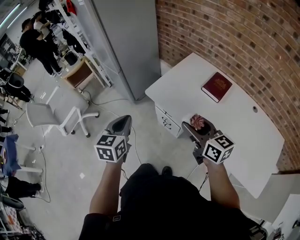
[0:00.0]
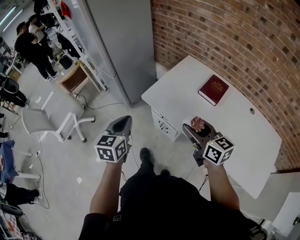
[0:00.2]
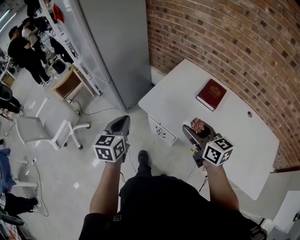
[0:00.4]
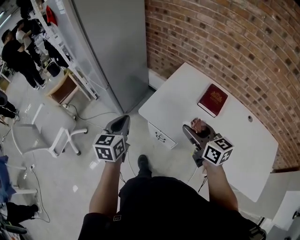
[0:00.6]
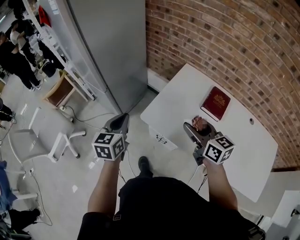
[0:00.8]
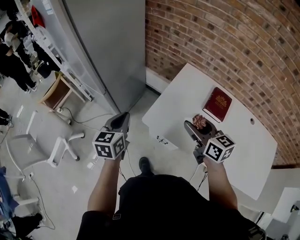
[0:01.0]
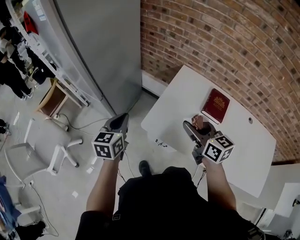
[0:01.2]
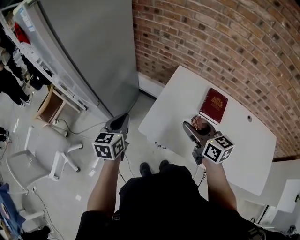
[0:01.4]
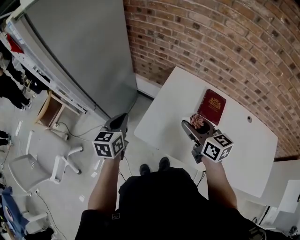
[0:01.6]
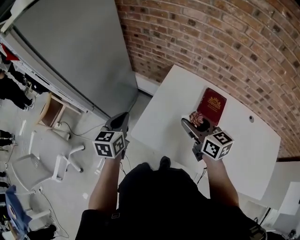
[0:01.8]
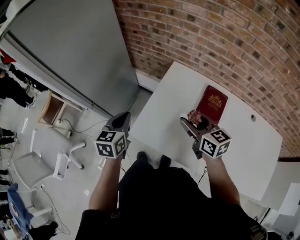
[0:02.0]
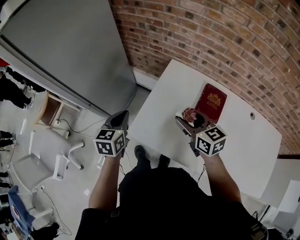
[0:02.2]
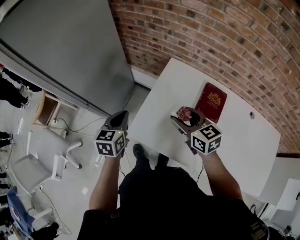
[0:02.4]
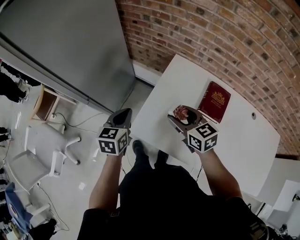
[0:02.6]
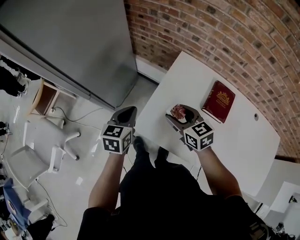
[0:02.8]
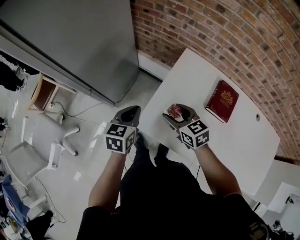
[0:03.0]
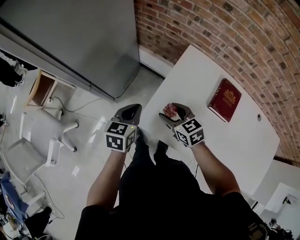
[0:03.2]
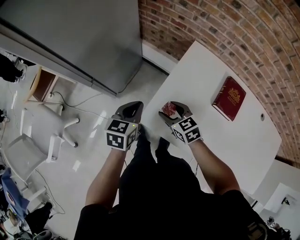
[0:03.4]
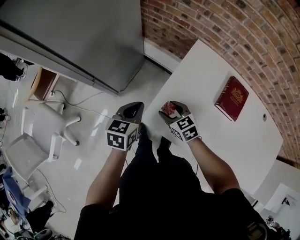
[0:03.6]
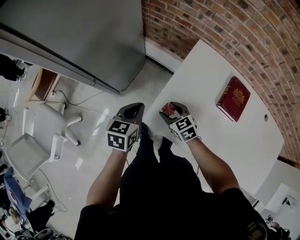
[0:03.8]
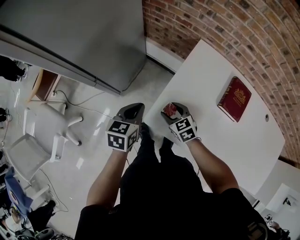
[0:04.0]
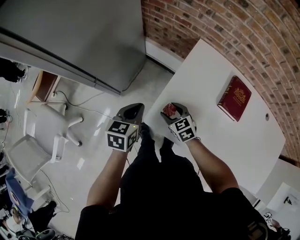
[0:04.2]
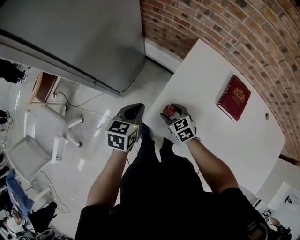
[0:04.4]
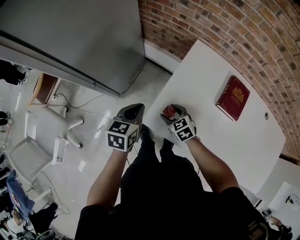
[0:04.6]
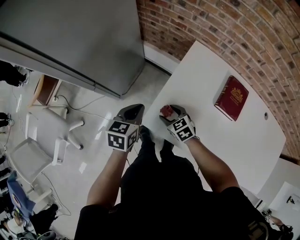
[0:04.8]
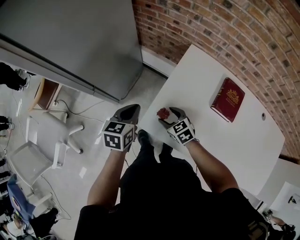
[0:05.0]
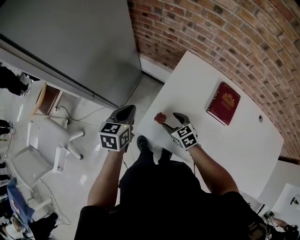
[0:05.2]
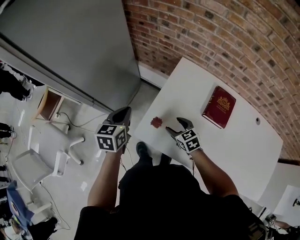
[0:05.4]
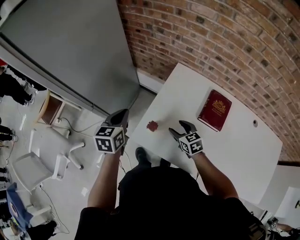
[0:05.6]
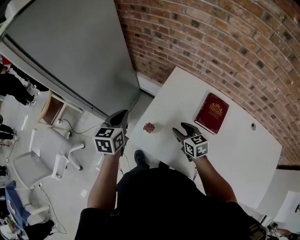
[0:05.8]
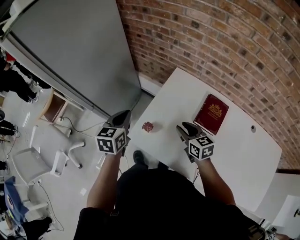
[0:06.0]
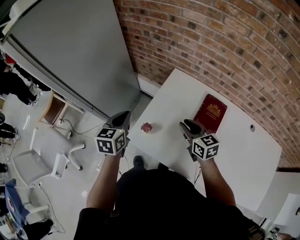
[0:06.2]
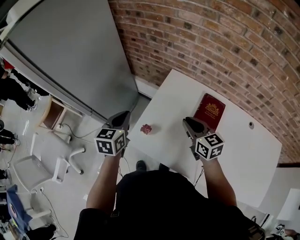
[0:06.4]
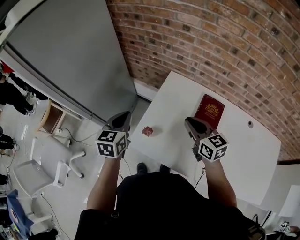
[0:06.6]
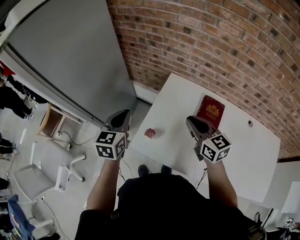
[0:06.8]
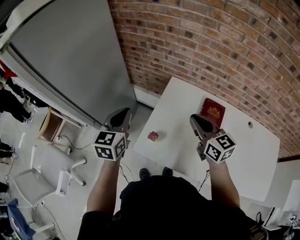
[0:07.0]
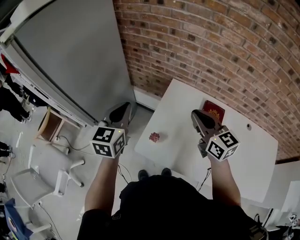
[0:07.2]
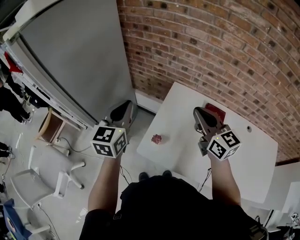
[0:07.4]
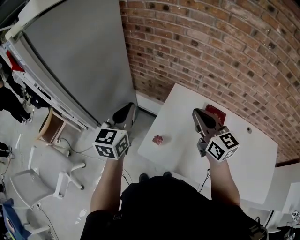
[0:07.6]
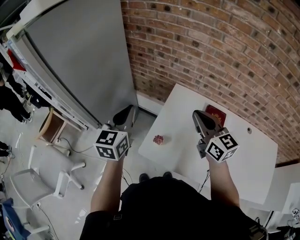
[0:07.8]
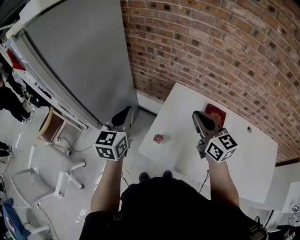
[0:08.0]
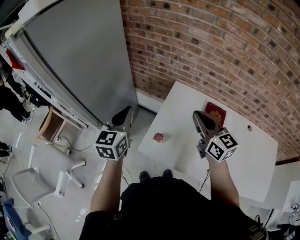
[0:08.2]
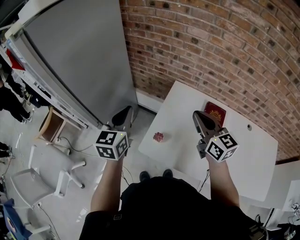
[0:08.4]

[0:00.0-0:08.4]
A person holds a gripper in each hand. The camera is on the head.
0:00.0 to 0:01.4: Both grippers move forward, approximately 30 cm.
0:01.4 to 0:02.8: The left gripper heads to the right, downward and forward, covering approximately 10 cm. The right gripper moves downward and forward, some 15 cm, and rotates approximately 20 degrees.
0:02.8 to 0:04.2: The right gripper is displaced downward and to the left by some 20 cm; the left gripper travels downward by approximately 5 cm.
0:04.2 to 0:05.6: The left gripper heads upward, covering roughly 10 cm. The right gripper travels to the right and upward by roughly 15 cm.
0:05.6 to 0:07.0: The left gripper heads upward, covering approximately 10 cm, while the right gripper moves upward, approximately 25 cm, swivels roughly 30 degrees, and closes.
0:07.0 to 0:08.4: The right gripper shifts by roughly 5 cm.

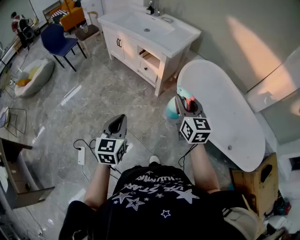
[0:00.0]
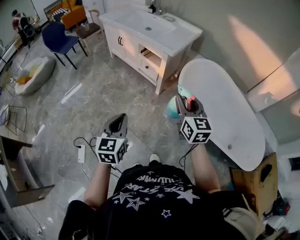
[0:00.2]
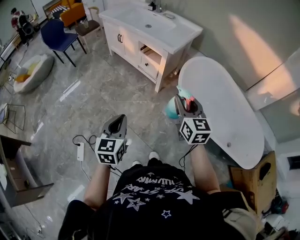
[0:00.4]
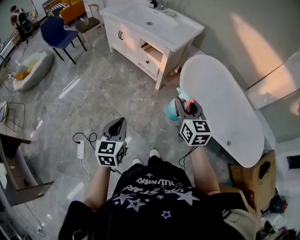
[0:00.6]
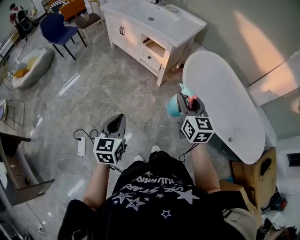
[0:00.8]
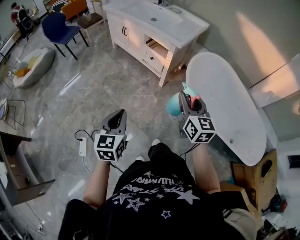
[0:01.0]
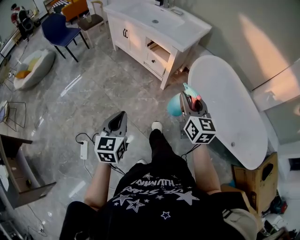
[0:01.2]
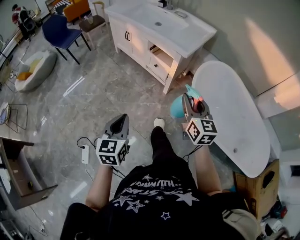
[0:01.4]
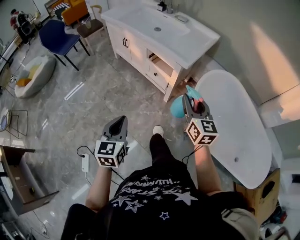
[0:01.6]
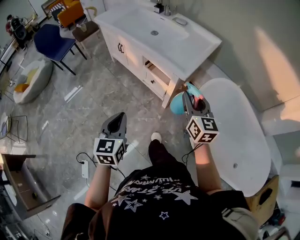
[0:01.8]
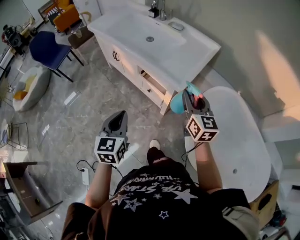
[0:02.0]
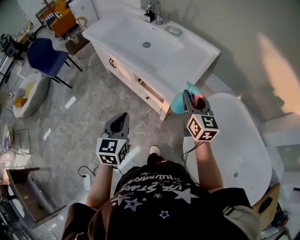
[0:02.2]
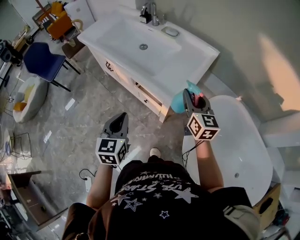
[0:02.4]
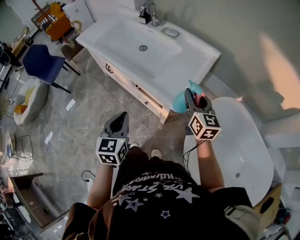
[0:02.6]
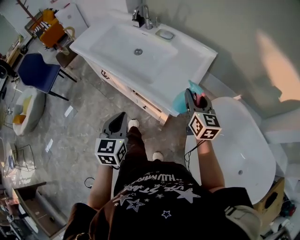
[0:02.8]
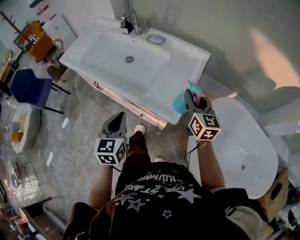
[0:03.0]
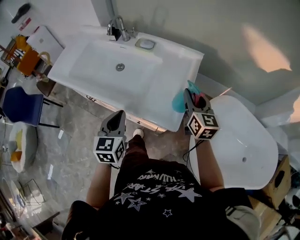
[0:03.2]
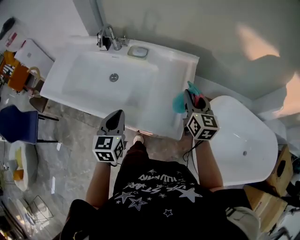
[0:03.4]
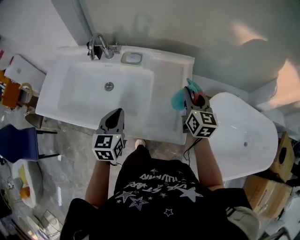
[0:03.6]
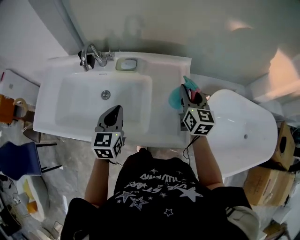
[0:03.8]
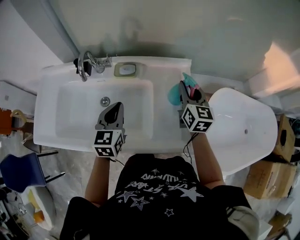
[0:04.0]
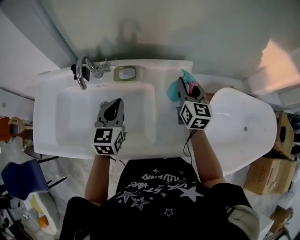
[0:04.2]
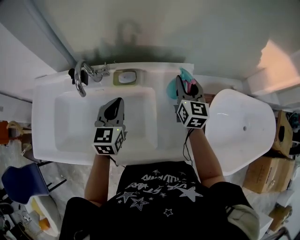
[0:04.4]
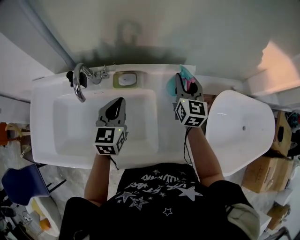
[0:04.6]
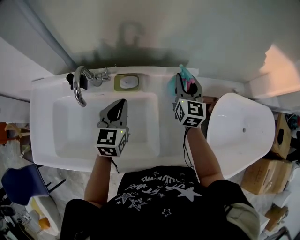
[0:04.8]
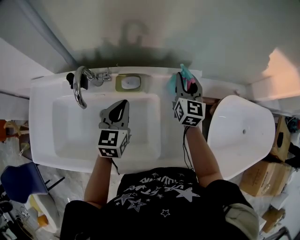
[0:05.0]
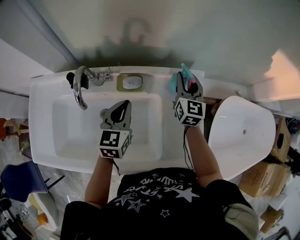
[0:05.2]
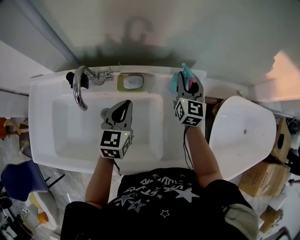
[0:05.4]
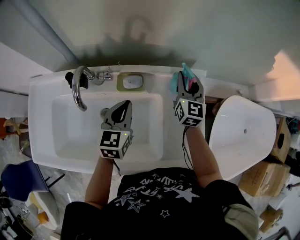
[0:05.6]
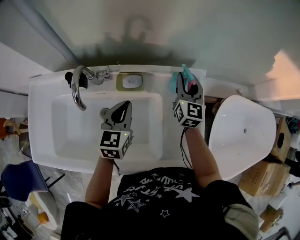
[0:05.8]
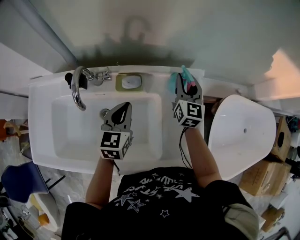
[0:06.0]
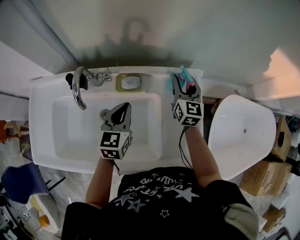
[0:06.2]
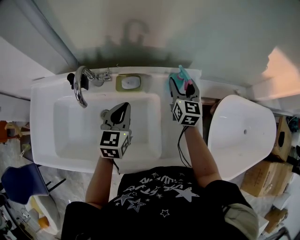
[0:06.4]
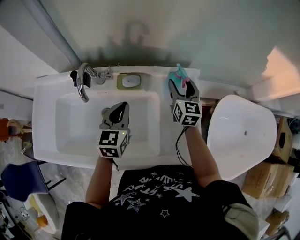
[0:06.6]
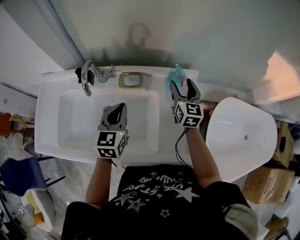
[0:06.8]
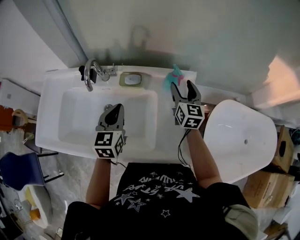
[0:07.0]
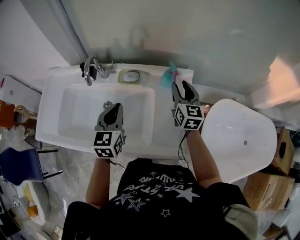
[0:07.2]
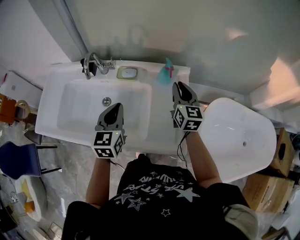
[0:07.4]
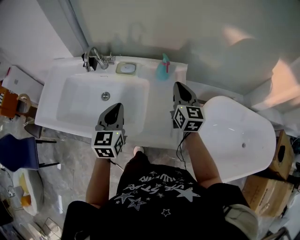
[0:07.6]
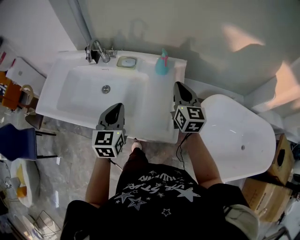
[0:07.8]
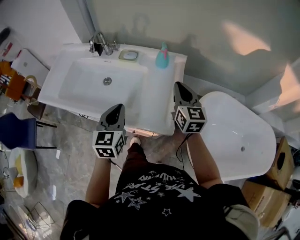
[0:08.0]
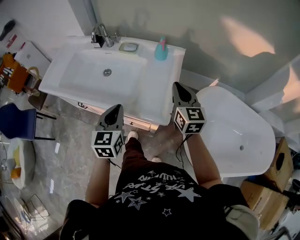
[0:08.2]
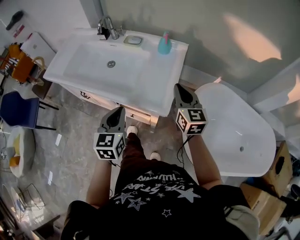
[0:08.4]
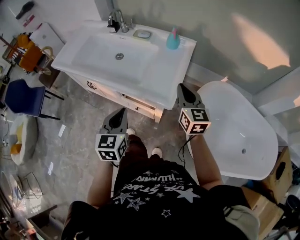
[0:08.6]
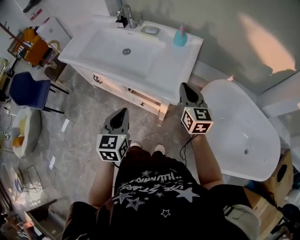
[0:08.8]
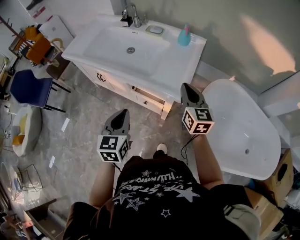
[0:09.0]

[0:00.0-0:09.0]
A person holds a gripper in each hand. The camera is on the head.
0:00.0 to 0:01.6: Both grippers travel together forward, roughly 20 cm.
0:01.6 to 0:03.0: Both grippers are carried forward, about 40 cm.
0:03.0 to 0:04.4: The left gripper ends up some 40 cm from where it was, and changes its angle by roughly 30 degrees; the right gripper ends up roughly 30 cm from where it was, and turns by approximately 30 degrees.
0:04.4 to 0:06.0: The left gripper moves approximately 5 cm; the right gripper travels forward and downward by about 10 cm.
0:06.0 to 0:07.6: Both grippers move backward and upward, about 20 cm. The right gripper closes its fingers.
0:07.6 to 0:09.0: The grippers both shift backward by roughly 30 cm.

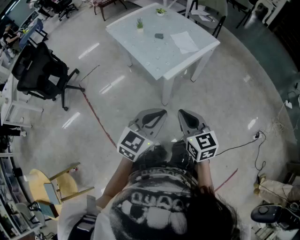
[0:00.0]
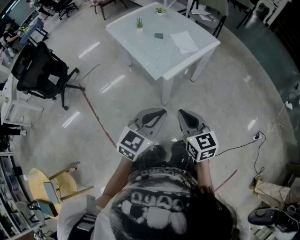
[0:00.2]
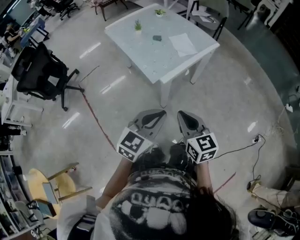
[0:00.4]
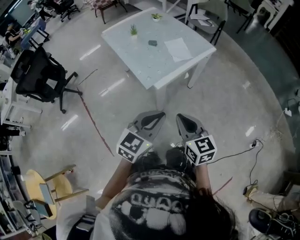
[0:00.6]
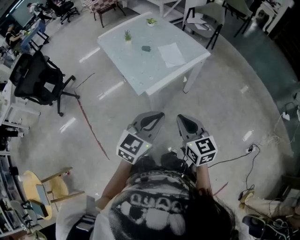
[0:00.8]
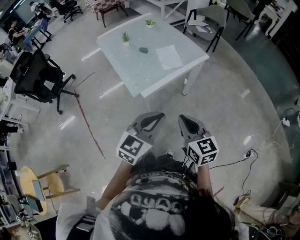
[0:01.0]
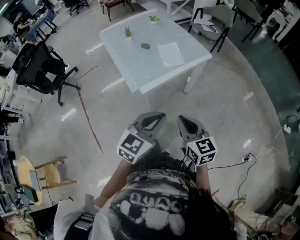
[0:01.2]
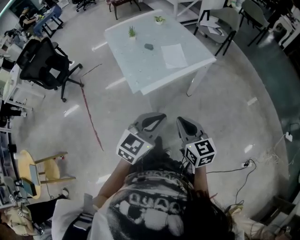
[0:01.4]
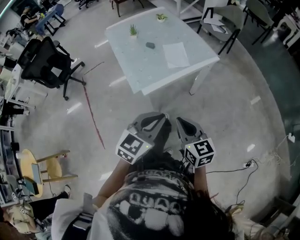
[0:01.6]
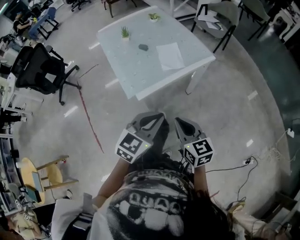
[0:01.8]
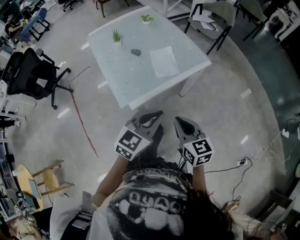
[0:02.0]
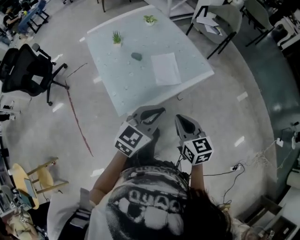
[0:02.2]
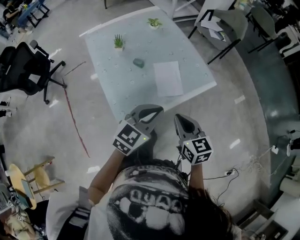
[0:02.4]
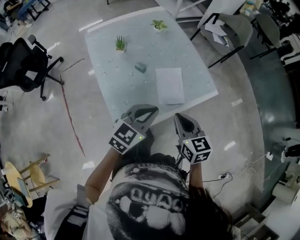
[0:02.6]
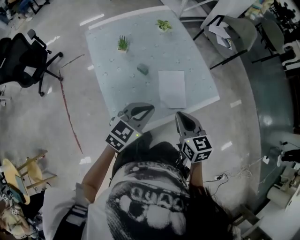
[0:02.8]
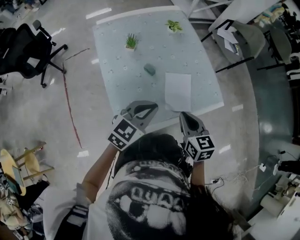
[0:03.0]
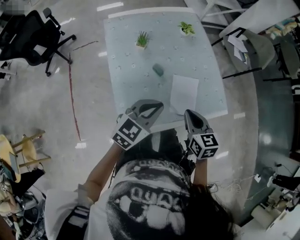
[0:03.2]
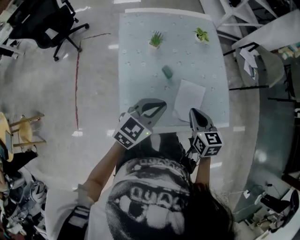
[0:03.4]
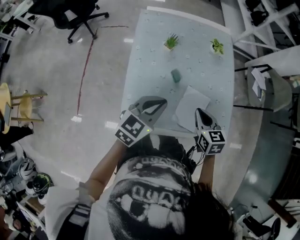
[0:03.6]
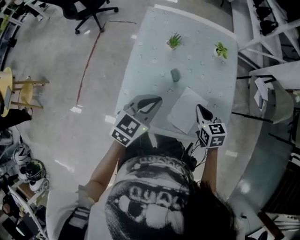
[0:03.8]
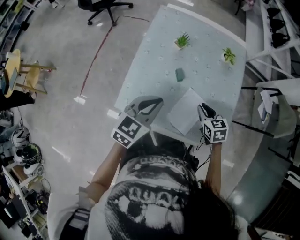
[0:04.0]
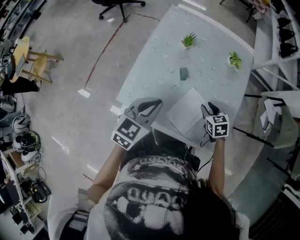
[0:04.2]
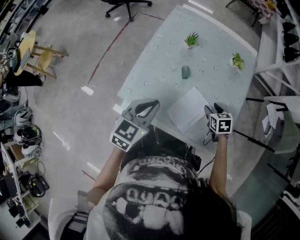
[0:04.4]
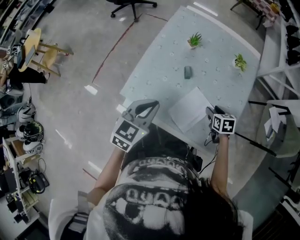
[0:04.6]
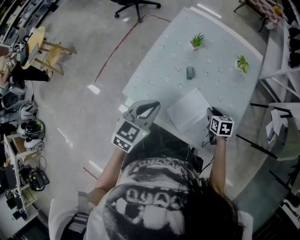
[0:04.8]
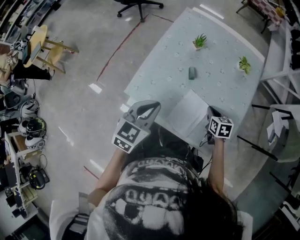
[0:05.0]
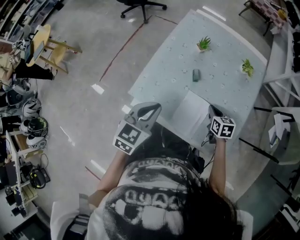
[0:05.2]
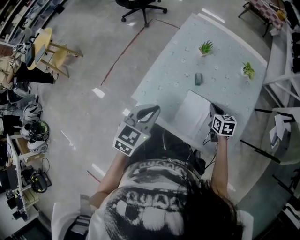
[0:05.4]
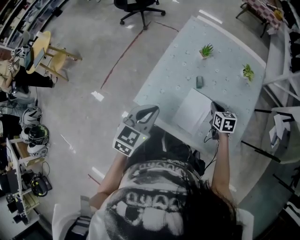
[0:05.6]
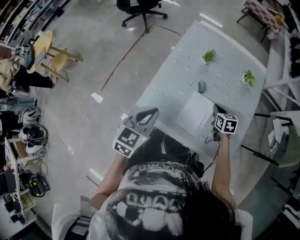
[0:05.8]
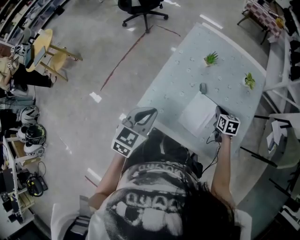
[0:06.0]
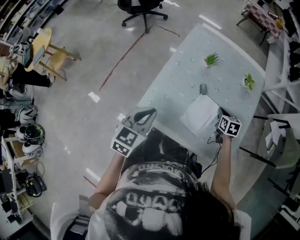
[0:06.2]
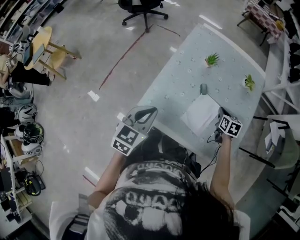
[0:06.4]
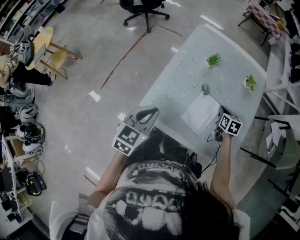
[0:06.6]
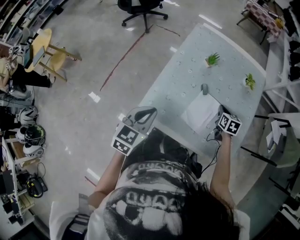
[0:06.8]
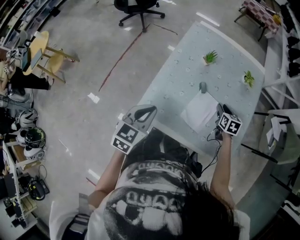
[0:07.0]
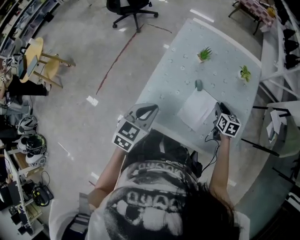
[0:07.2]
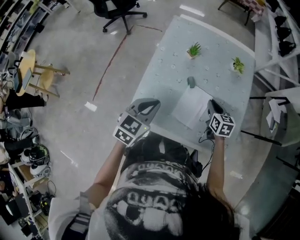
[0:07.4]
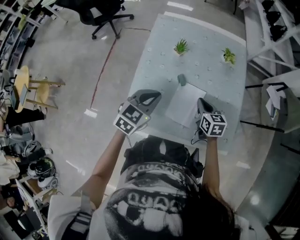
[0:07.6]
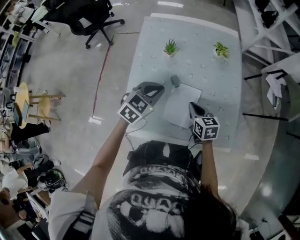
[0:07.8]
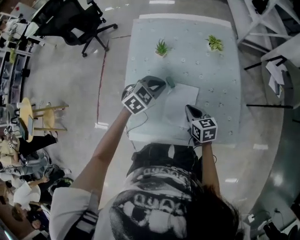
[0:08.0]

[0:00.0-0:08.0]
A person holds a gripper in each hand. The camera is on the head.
0:00.0 to 0:01.6: Both grippers travel together to the right and forward, roughly 20 cm.
0:01.6 to 0:03.2: Both grippers travel together forward, approximately 35 cm.
0:03.2 to 0:04.8: The left gripper turns by approximately 50 degrees; the right gripper changes place by about 25 cm, changes its angle by roughly 40 degrees, and opens its fingers.
0:04.8 to 0:06.4: The right gripper shifts roughly 10 cm forward, and closes its fingers, while the left gripper shifts about 10 cm to the left.
0:06.4 to 0:08.0: The right gripper heads backward and to the left, covering some 10 cm, and opens, then closes again; the left gripper is displaced forward, to the right and downward by some 25 cm, and swivels about 50 degrees.
